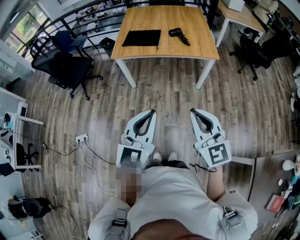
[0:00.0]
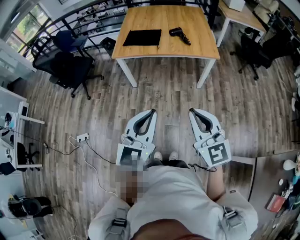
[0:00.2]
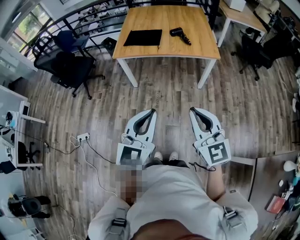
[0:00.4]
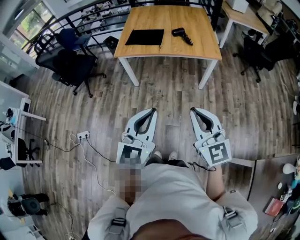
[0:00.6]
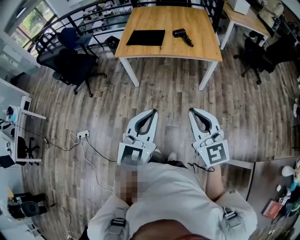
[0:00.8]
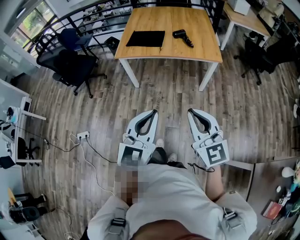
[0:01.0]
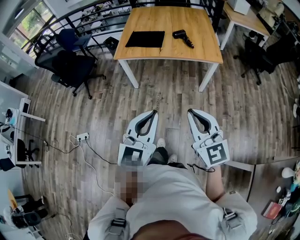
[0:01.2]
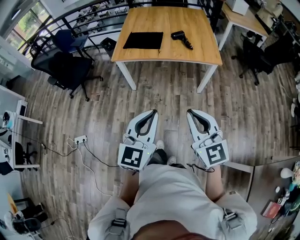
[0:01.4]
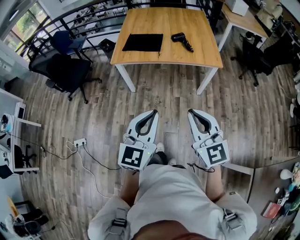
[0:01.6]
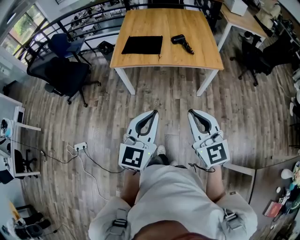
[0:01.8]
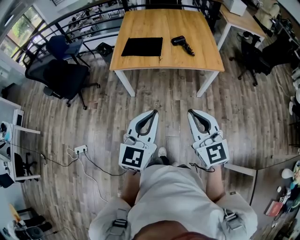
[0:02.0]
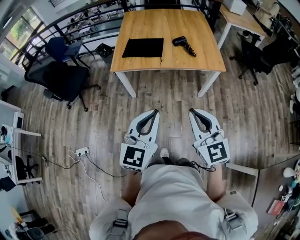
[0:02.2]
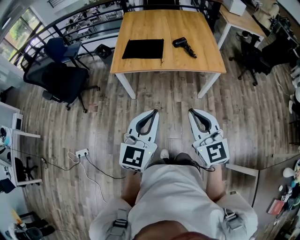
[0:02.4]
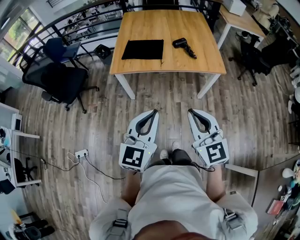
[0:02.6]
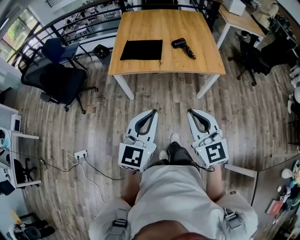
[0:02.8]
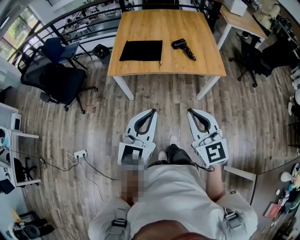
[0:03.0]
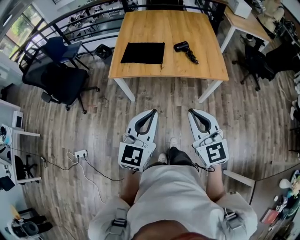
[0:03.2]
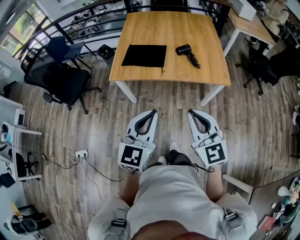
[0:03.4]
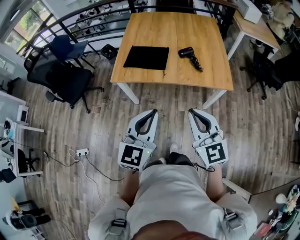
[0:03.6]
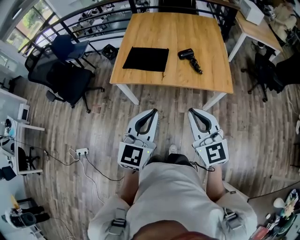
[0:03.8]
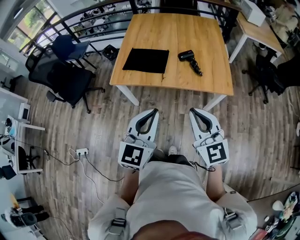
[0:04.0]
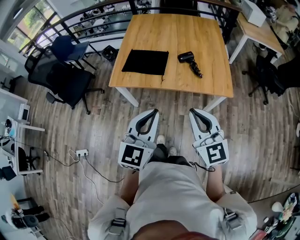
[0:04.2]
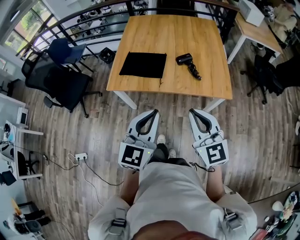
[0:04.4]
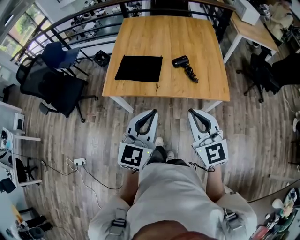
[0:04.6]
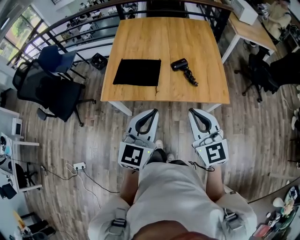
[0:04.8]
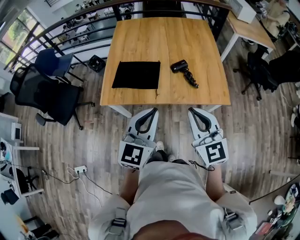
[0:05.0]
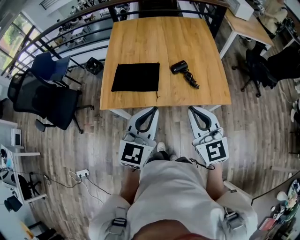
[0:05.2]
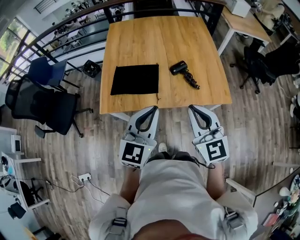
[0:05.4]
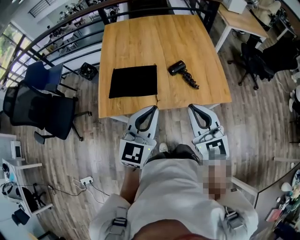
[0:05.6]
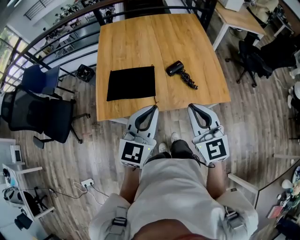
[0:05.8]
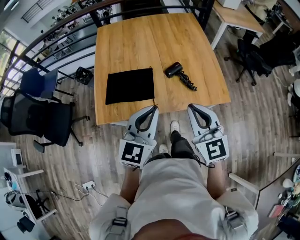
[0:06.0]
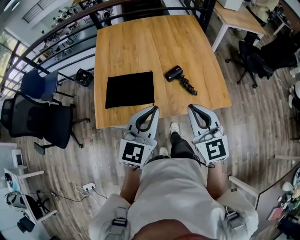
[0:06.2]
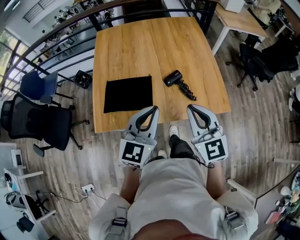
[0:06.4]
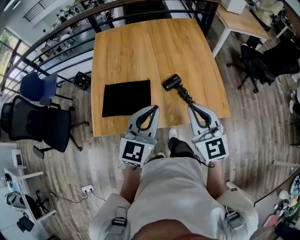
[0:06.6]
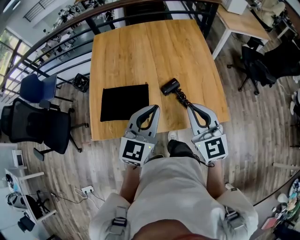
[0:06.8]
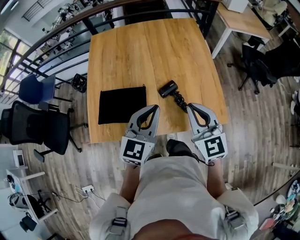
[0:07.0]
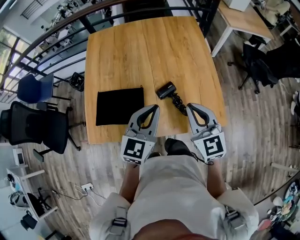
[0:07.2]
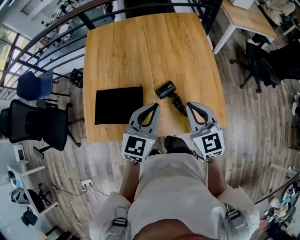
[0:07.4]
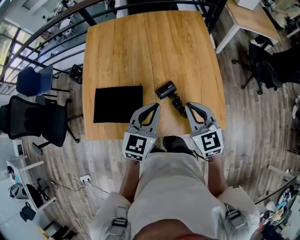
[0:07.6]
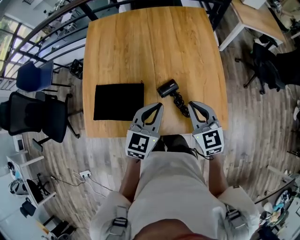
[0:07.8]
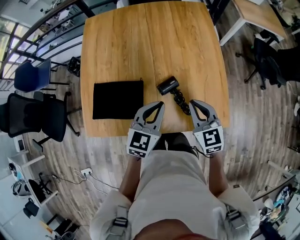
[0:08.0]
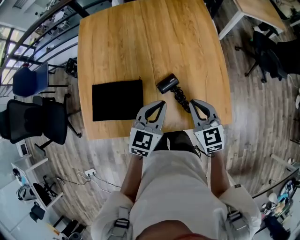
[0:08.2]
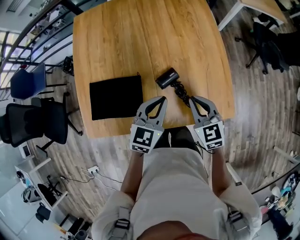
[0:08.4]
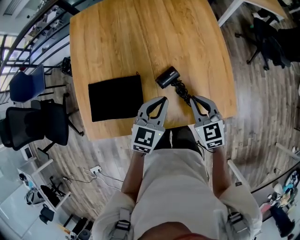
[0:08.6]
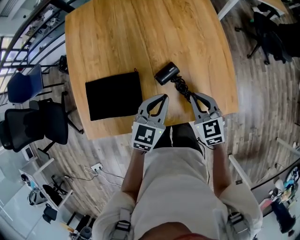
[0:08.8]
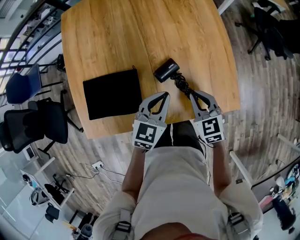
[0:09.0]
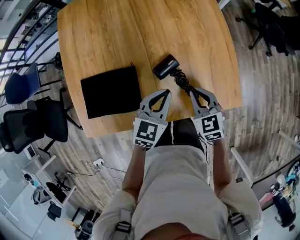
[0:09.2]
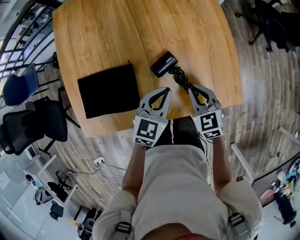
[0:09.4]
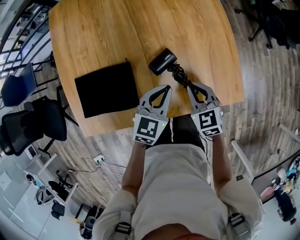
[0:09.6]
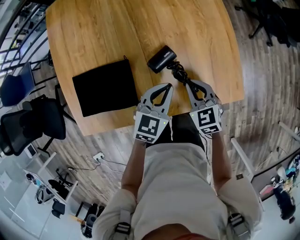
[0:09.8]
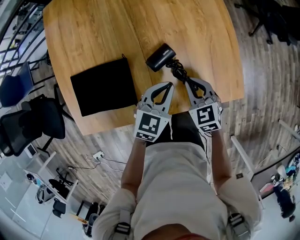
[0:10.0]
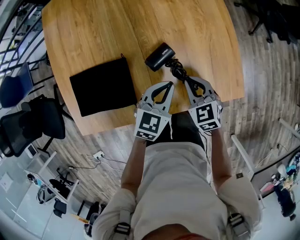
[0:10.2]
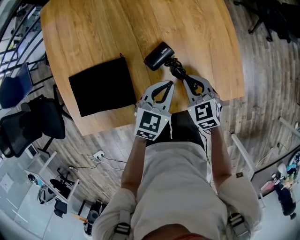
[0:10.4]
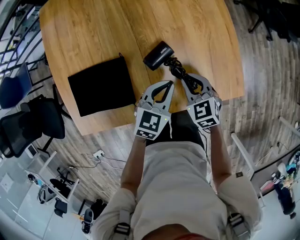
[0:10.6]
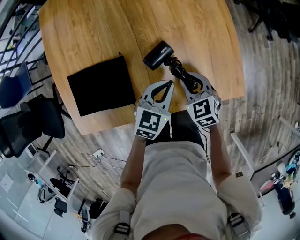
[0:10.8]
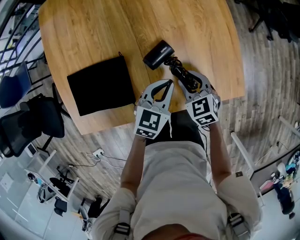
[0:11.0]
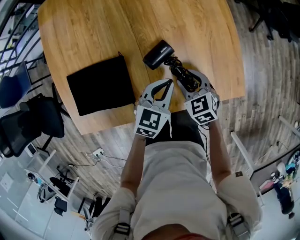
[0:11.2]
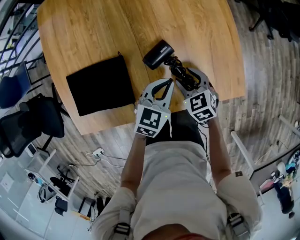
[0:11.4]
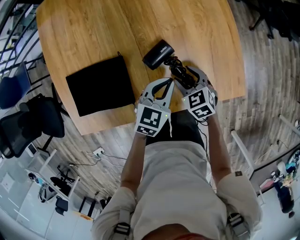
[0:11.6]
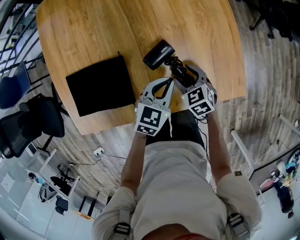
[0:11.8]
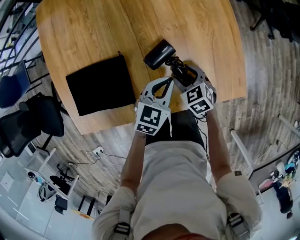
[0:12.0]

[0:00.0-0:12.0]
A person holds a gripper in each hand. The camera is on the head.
0:00.0 to 0:01.6: The two grippers go some 10 cm forward.
0:01.6 to 0:03.0: Both grippers move forward, some 10 cm.
0:03.0 to 0:04.4: Both grippers move forward and to the right, approximately 15 cm.
0:04.4 to 0:06.0: The two grippers go roughly 20 cm forward.
0:06.0 to 0:07.6: The grippers both shift forward by approximately 20 cm.
0:07.6 to 0:09.0: The grippers both shift downward by some 15 cm.
0:09.0 to 0:10.4: Both grippers move downward, approximately 10 cm.
0:10.4 to 0:12.0: The right gripper shifts about 5 cm downward, and opens up.

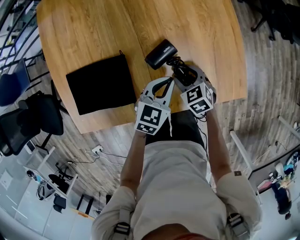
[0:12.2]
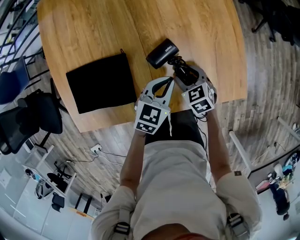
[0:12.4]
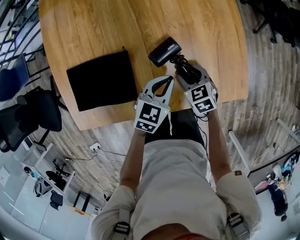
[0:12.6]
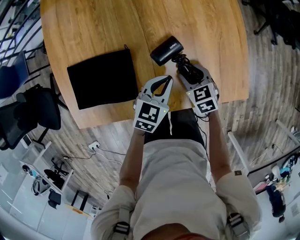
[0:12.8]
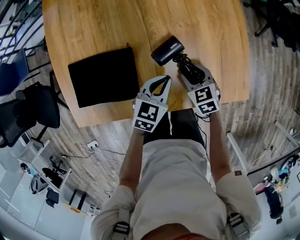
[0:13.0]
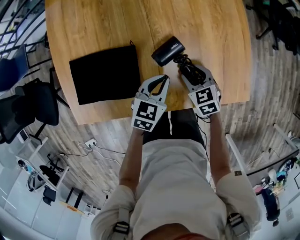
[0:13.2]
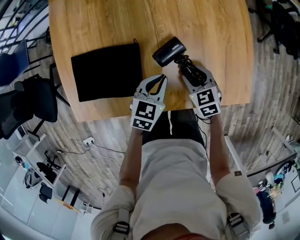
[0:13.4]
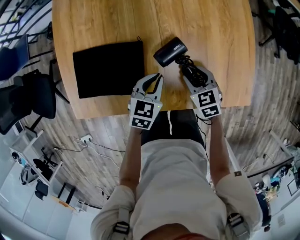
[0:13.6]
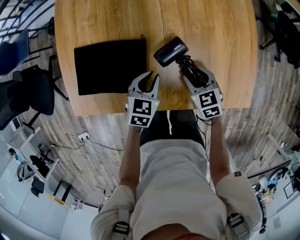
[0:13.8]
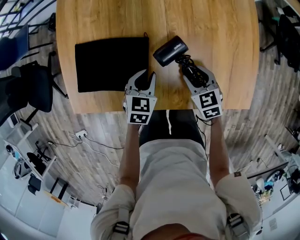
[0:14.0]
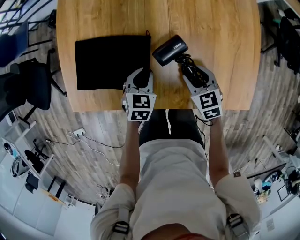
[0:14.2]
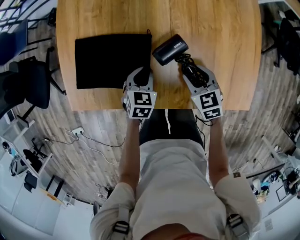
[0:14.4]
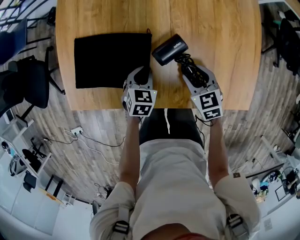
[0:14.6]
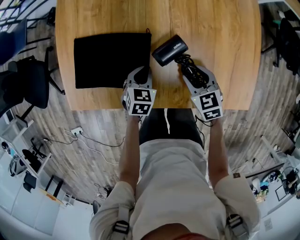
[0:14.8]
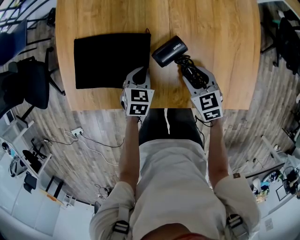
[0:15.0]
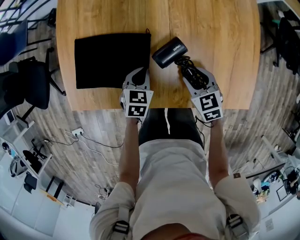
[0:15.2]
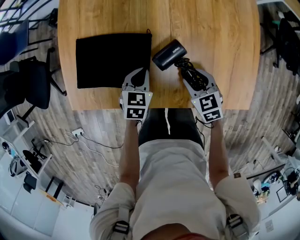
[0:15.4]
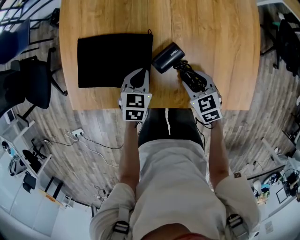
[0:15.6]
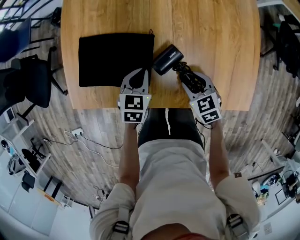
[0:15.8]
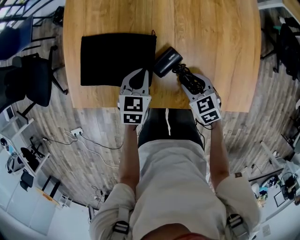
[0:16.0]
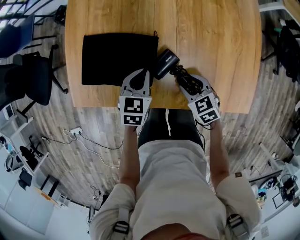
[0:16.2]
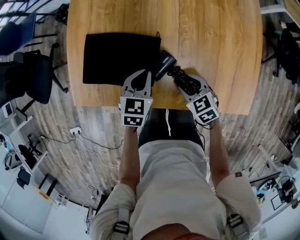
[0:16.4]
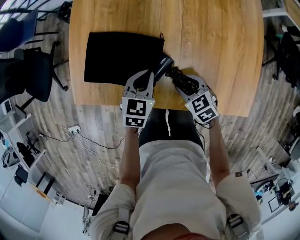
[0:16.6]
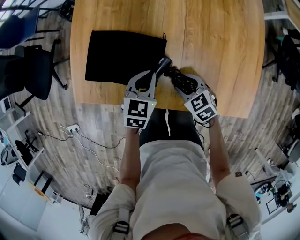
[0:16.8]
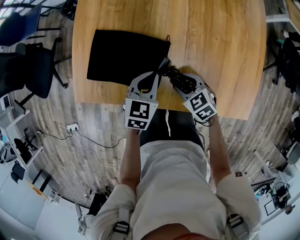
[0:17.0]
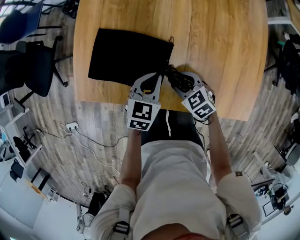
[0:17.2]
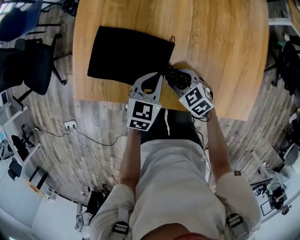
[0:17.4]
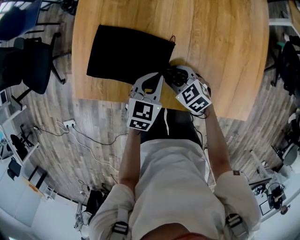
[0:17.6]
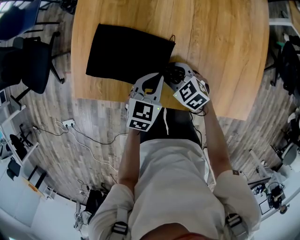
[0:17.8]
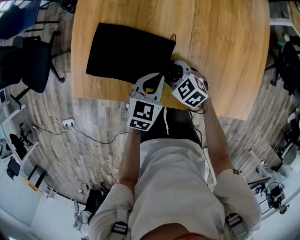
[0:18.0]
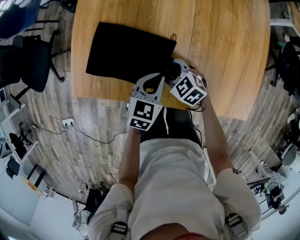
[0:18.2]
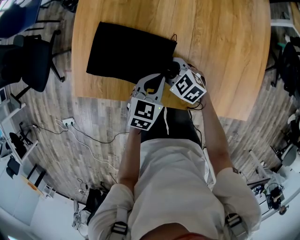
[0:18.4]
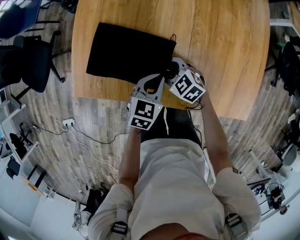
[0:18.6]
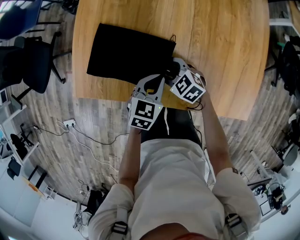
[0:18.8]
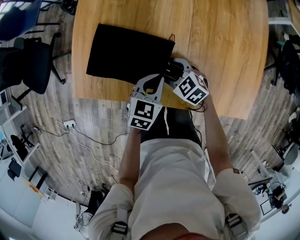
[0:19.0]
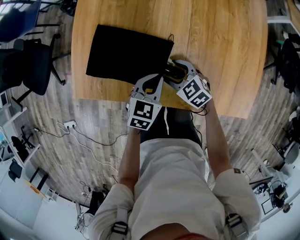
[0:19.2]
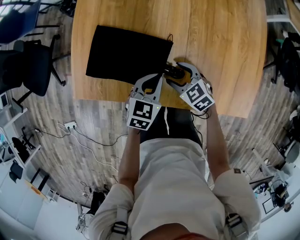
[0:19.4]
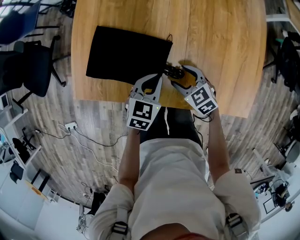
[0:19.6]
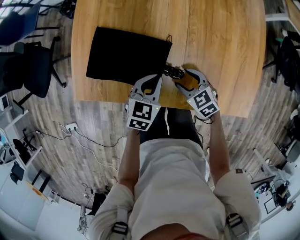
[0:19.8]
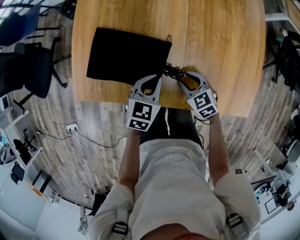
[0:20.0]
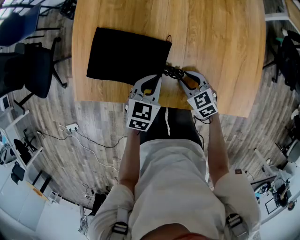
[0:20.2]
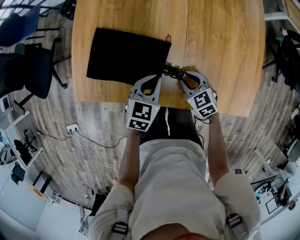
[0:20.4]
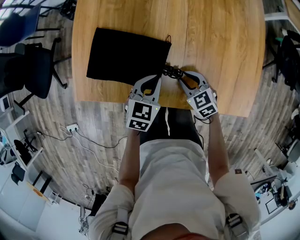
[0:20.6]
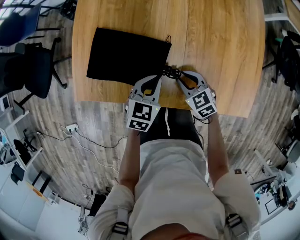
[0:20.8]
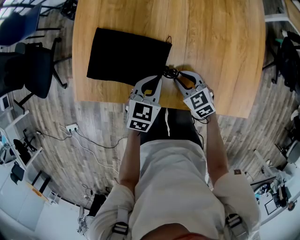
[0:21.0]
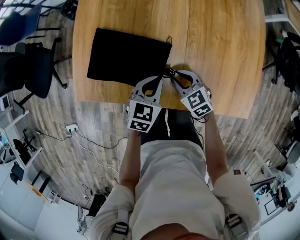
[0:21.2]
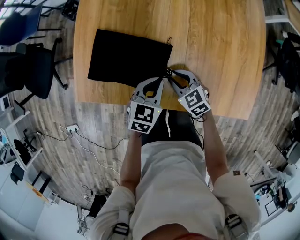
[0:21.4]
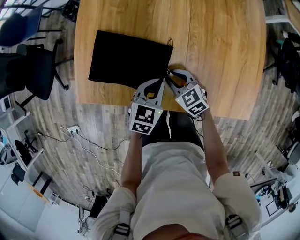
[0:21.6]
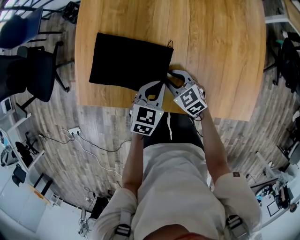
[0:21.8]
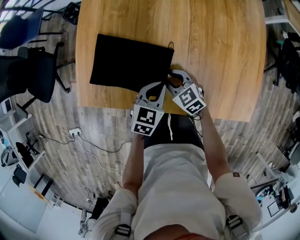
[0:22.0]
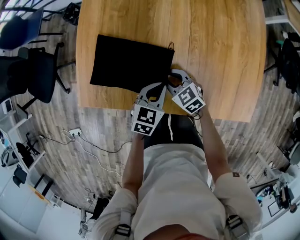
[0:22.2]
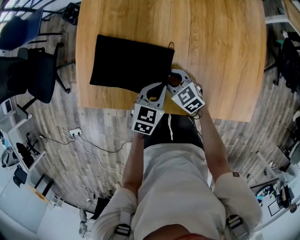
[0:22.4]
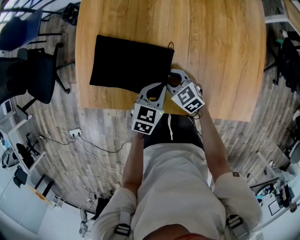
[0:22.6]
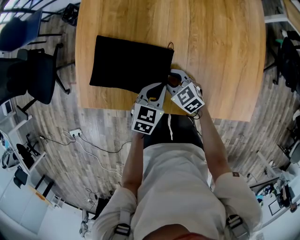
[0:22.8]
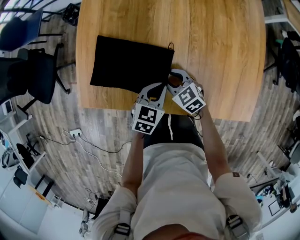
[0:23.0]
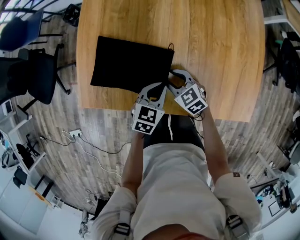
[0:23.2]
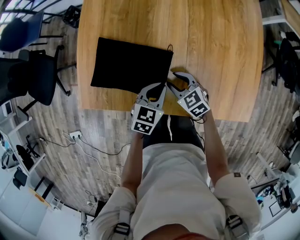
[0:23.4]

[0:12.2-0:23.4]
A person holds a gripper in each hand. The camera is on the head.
0:12.2 to 0:13.8: The left gripper heads to the left, covering some 15 cm, and swivels about 20 degrees.
0:13.8 to 0:15.4: The left gripper travels to the left by about 5 cm.
0:15.4 to 0:17.0: The left gripper goes approximately 5 cm upward. Meanwhile the right gripper is displaced to the left by some 10 cm.
0:17.0 to 0:18.6: The right gripper heads to the left and forward, covering about 10 cm.
0:18.6 to 0:20.2: The right gripper is displaced to the right and backward by approximately 10 cm, and swivels about 20 degrees.
0:20.2 to 0:21.8: The right gripper travels to the left by roughly 5 cm.
0:21.8 to 0:23.4: The grippers stay close to where they were, moving slightly.

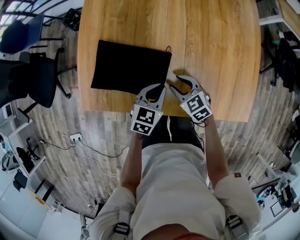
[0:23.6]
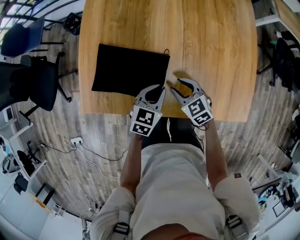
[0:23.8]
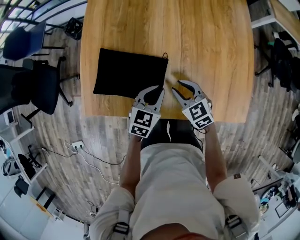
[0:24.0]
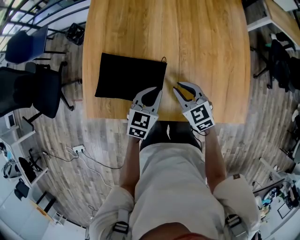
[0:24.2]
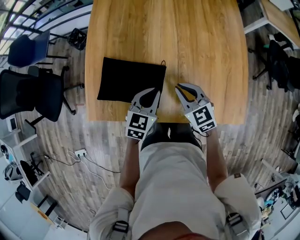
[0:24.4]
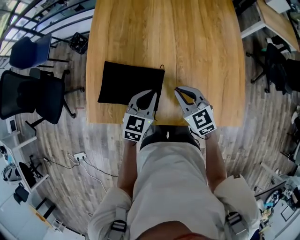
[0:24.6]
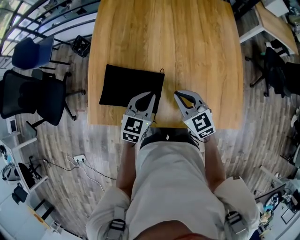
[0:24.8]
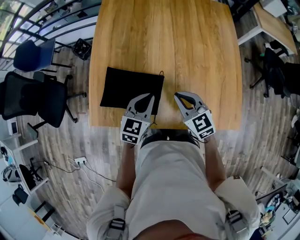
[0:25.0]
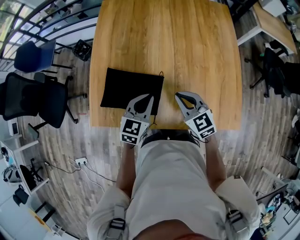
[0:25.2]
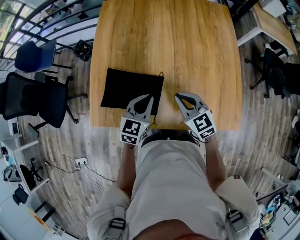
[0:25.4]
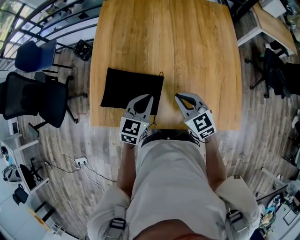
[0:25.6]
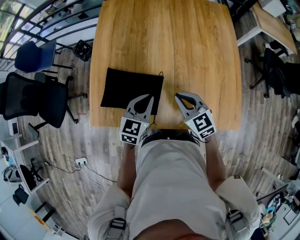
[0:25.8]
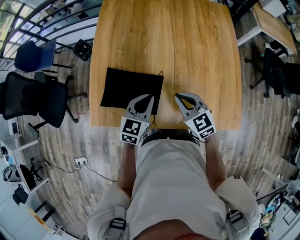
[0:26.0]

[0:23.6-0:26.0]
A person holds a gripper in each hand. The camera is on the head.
0:23.6 to 0:24.8: The grippers both shift upward by roughly 15 cm. The right gripper closes up.
0:24.8 to 0:26.0: Both grippers stay put.
